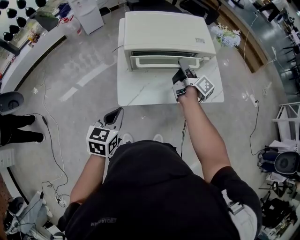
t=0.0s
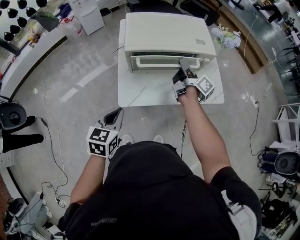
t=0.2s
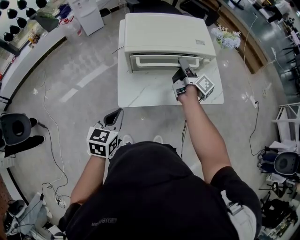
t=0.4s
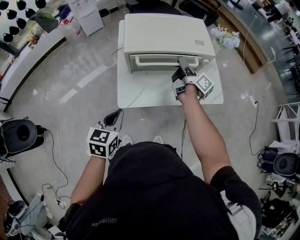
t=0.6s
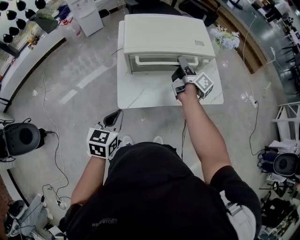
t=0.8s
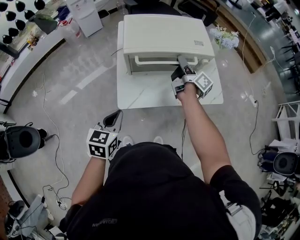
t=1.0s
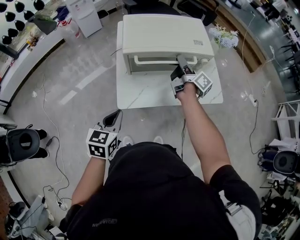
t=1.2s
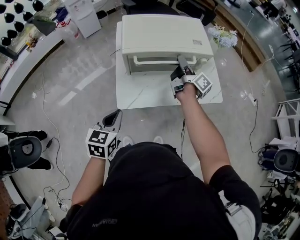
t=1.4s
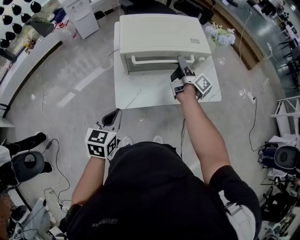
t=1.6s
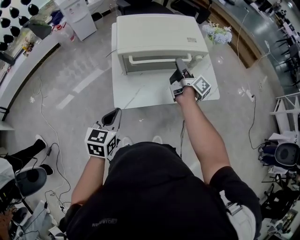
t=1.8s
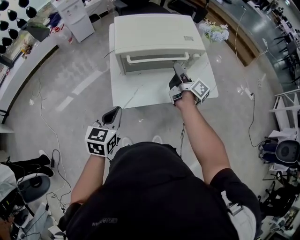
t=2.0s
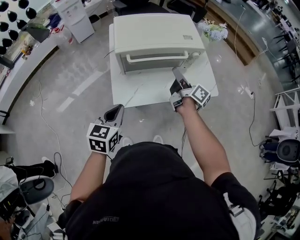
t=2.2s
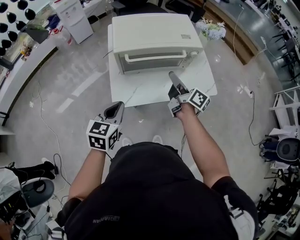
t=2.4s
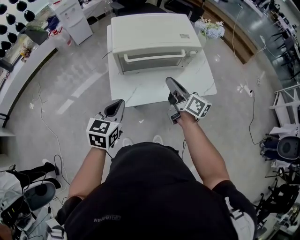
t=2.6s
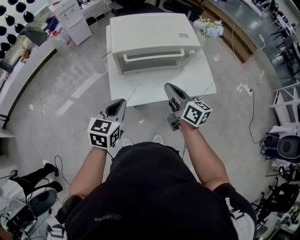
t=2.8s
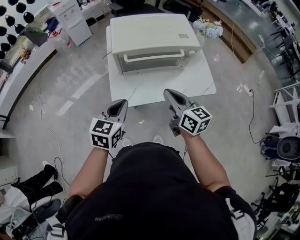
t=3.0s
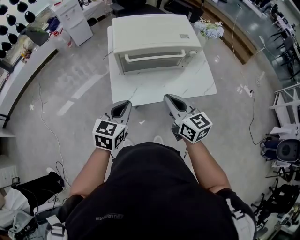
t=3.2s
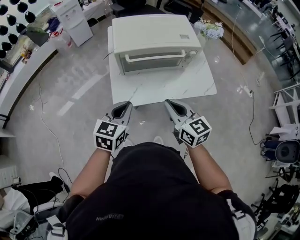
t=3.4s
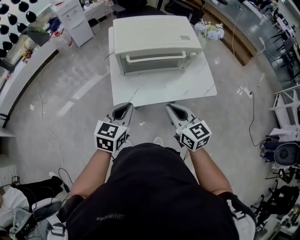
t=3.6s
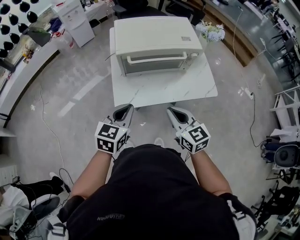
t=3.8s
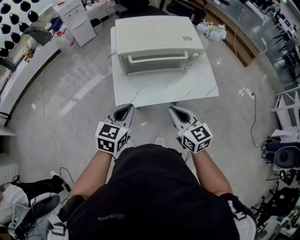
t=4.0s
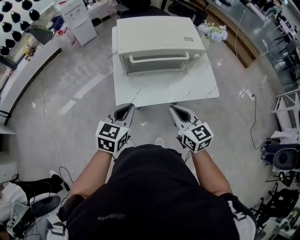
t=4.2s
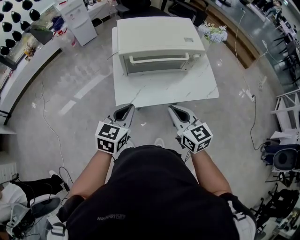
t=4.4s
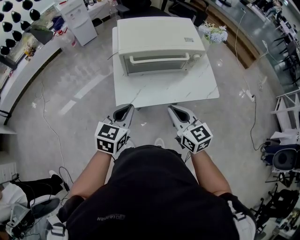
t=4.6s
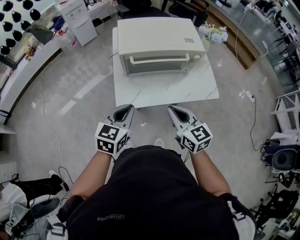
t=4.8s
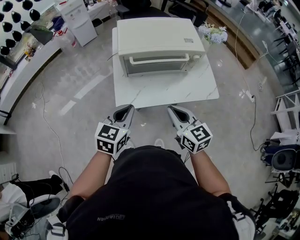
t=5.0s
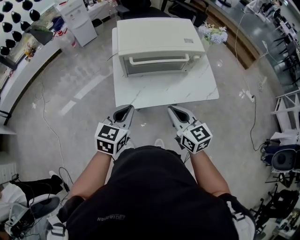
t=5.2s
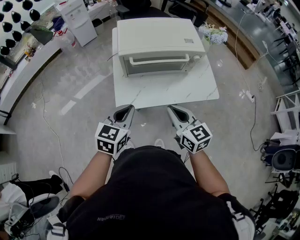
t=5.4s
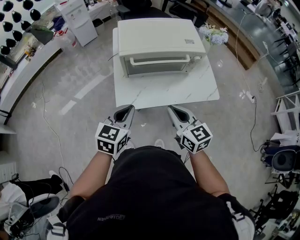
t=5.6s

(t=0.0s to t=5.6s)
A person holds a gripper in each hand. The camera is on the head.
t=0.0s - t=1.4s: The grippers make only small movements.
t=1.4s - t=2.8s: The right gripper travels backward by approximately 20 cm, rotates about 40 degrees, and closes up. The left gripper changes place by roughly 5 cm.
t=2.8s - t=4.2s: The right gripper travels backward by about 10 cm, and swivels approximately 30 degrees.
t=4.2s - t=5.6s: Both grippers stay put.

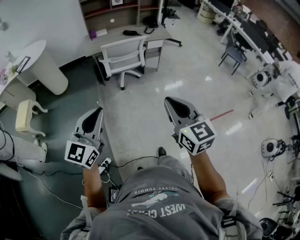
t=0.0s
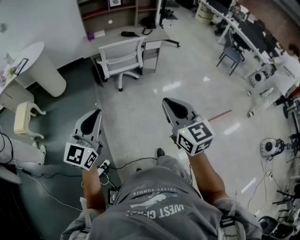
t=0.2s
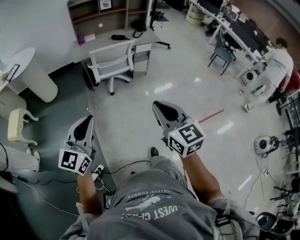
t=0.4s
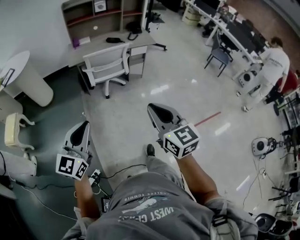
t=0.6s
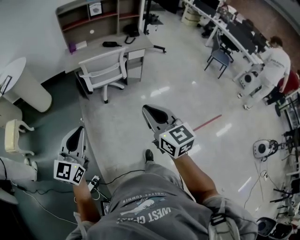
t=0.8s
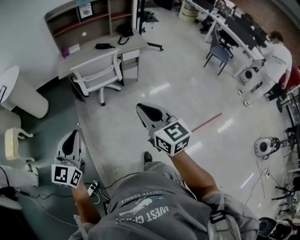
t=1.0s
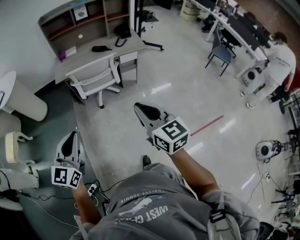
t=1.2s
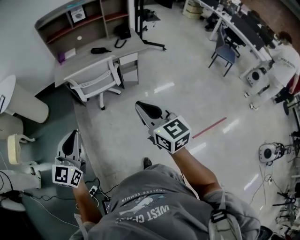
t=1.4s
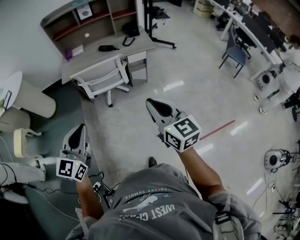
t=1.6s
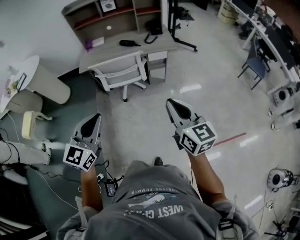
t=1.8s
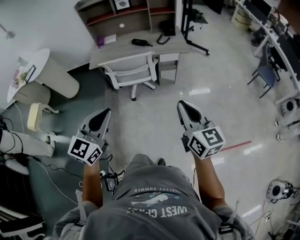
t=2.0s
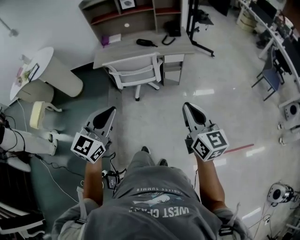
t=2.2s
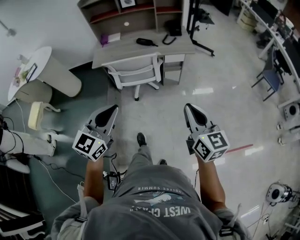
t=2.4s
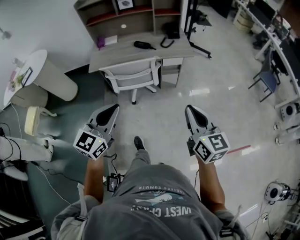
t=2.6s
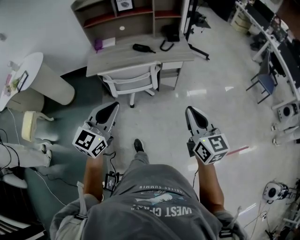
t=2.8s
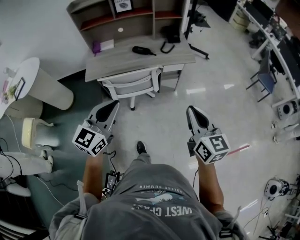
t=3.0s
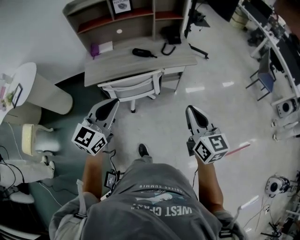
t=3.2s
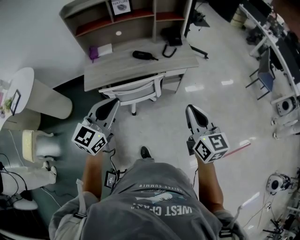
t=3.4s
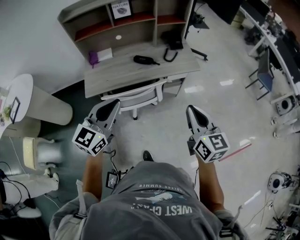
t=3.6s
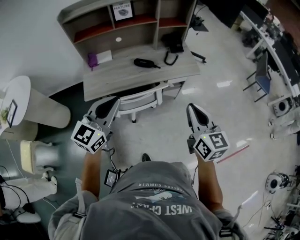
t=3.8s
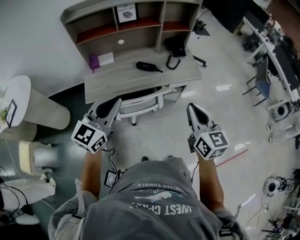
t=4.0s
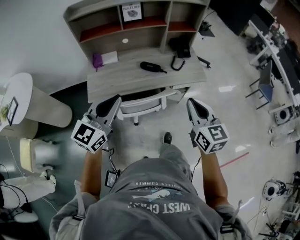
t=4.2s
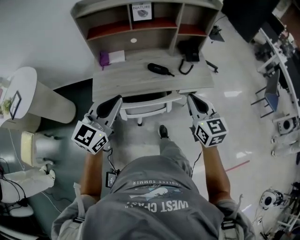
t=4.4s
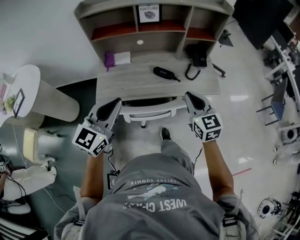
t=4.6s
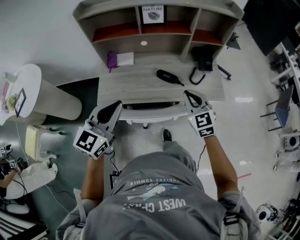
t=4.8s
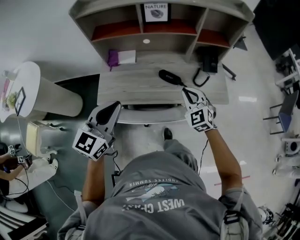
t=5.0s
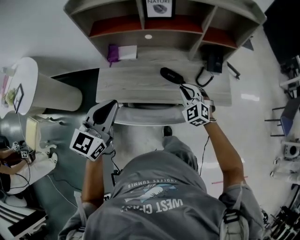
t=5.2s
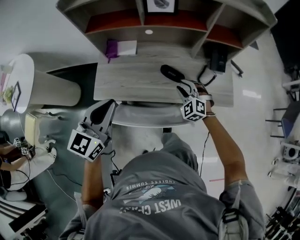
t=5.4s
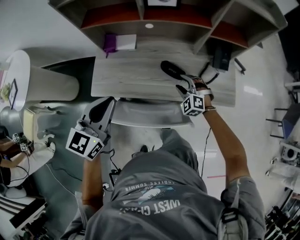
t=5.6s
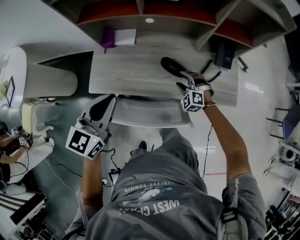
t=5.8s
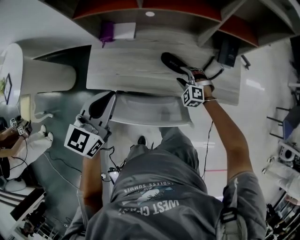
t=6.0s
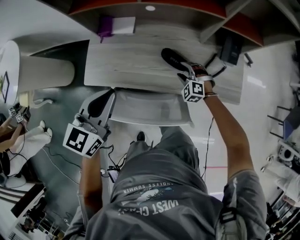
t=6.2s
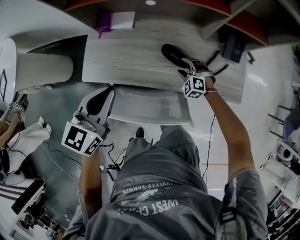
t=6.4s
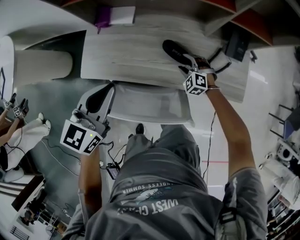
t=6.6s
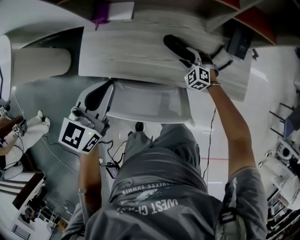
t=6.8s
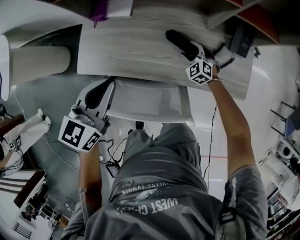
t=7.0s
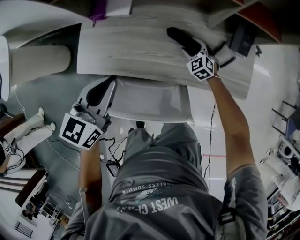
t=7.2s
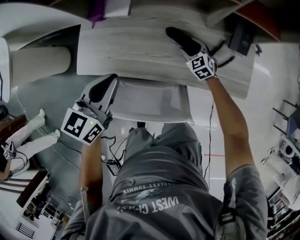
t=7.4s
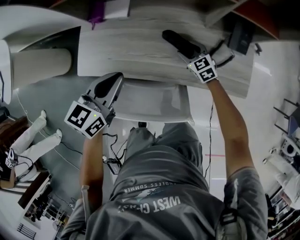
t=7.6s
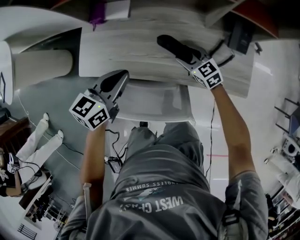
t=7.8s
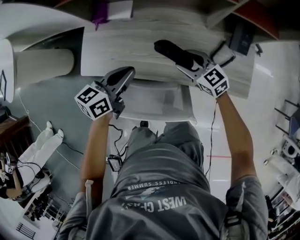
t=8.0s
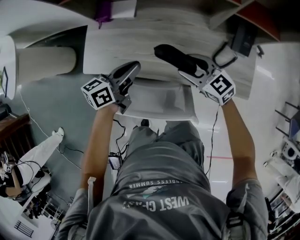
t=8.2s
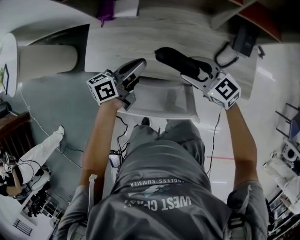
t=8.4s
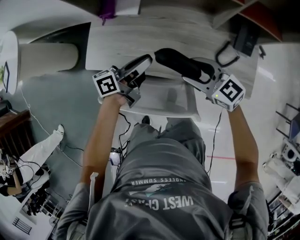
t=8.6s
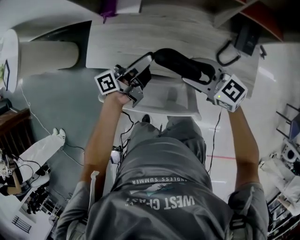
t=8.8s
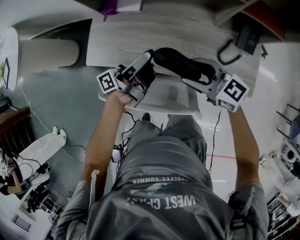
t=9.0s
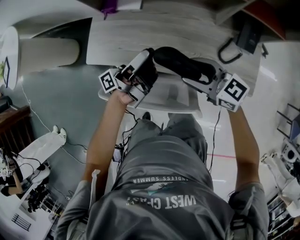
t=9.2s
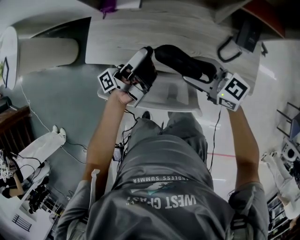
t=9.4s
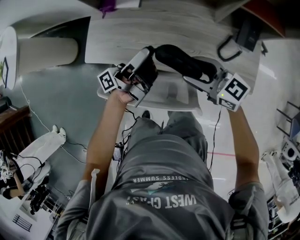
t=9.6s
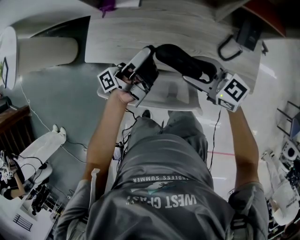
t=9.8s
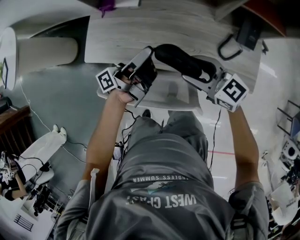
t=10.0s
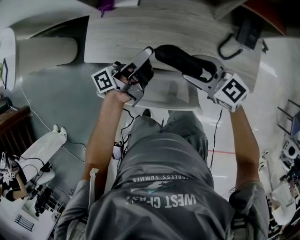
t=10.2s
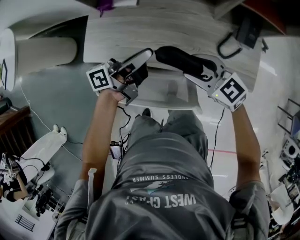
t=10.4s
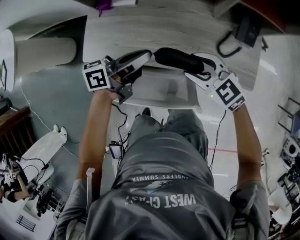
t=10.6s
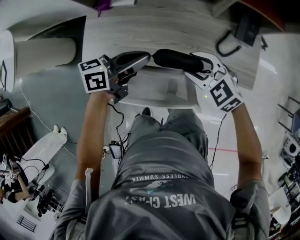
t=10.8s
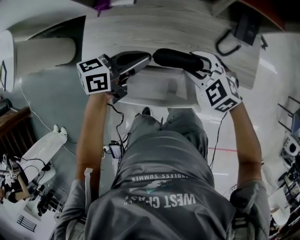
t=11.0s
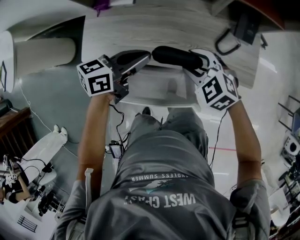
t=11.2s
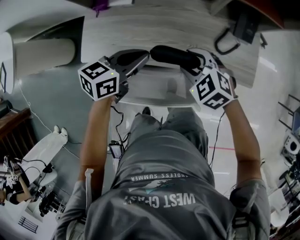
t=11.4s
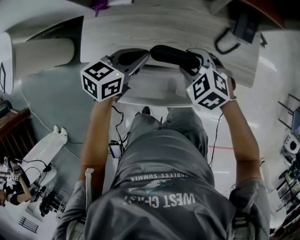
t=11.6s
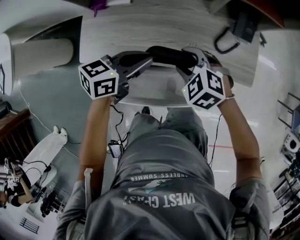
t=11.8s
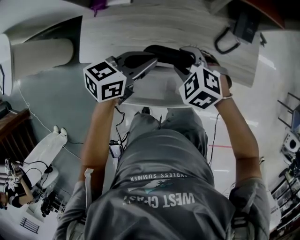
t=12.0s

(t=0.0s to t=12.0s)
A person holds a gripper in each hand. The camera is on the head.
t=0.0s - t=1.6s: Both grippers travel together forward and to the right, approximately 35 cm.
t=1.6s - t=3.0s: The two grippers go approximately 25 cm forward.
t=3.0s - t=4.4s: Both grippers move forward and to the left, roughly 30 cm.
t=4.4s - t=6.0s: The right gripper heads downward and forward, covering approximately 50 cm, rotates around the line of its fingers by some 60 degrees, counterclockwise from behind, and opens up. Meanwhile the left gripper travels forward and downward by approximately 25 cm, and turns by about 30 degrees.
t=6.0s - t=7.6s: The right gripper is displaced forward by some 10 cm, and rotates around the line of its fingers by some 40 degrees, clockwise from behind. The left gripper shifts roughly 15 cm downward and forward.
t=7.6s - t=9.0s: The left gripper tips its fingers upward by some 40 degrees, and opens; the right gripper moves upward and backward, roughly 25 cm, and turns by about 40 degrees.
t=9.0s - t=10.4s: The left gripper closes its fingers.
t=10.4s - t=12.0s: The right gripper tilts its fingers approximately 30 degrees downward; the left gripper points its fingers roughly 30 degrees further downward.

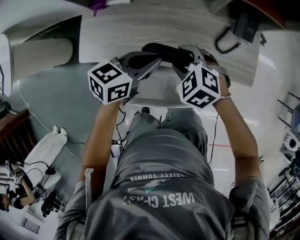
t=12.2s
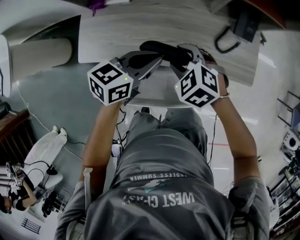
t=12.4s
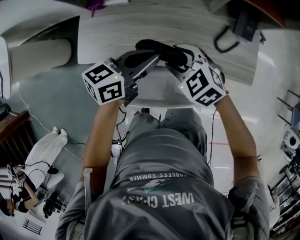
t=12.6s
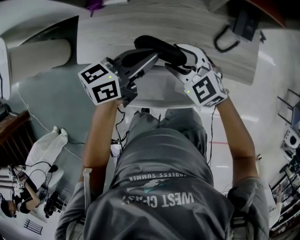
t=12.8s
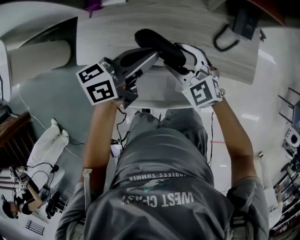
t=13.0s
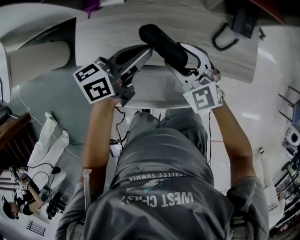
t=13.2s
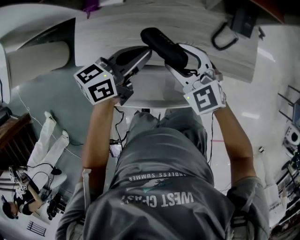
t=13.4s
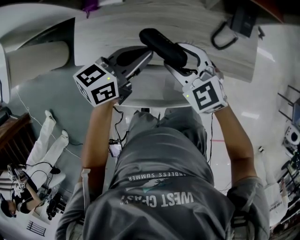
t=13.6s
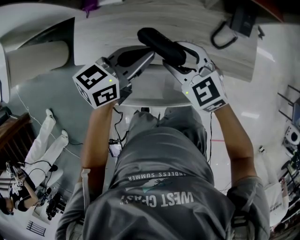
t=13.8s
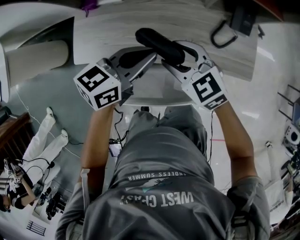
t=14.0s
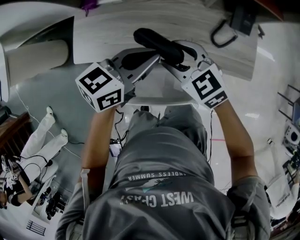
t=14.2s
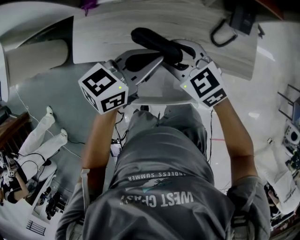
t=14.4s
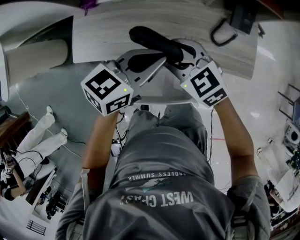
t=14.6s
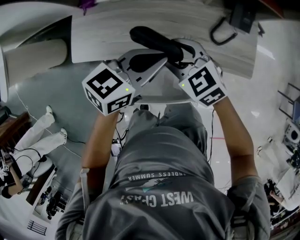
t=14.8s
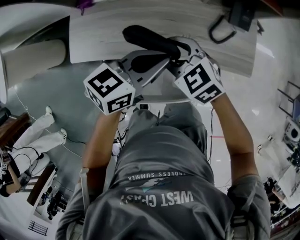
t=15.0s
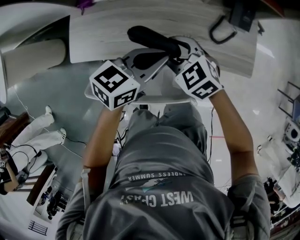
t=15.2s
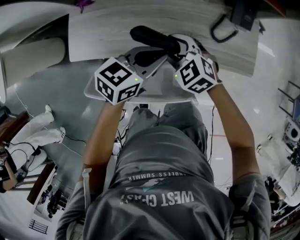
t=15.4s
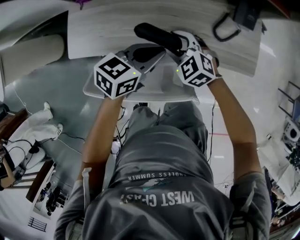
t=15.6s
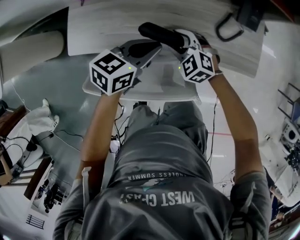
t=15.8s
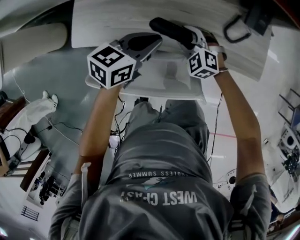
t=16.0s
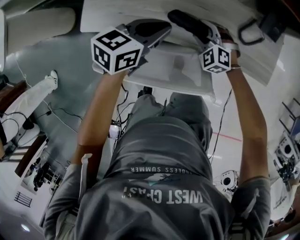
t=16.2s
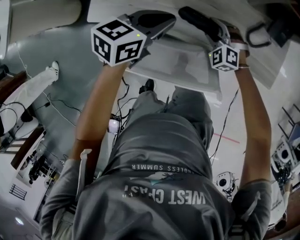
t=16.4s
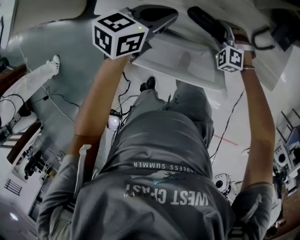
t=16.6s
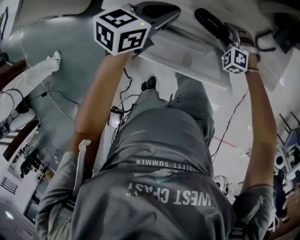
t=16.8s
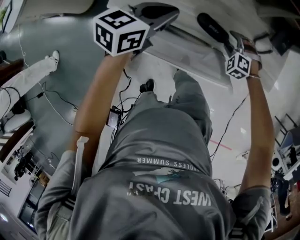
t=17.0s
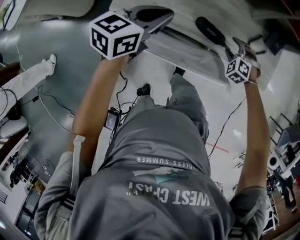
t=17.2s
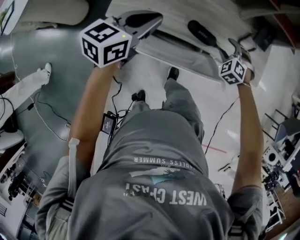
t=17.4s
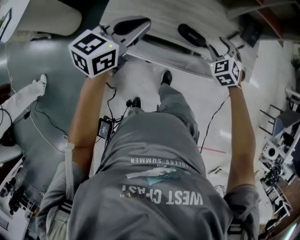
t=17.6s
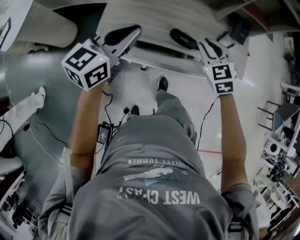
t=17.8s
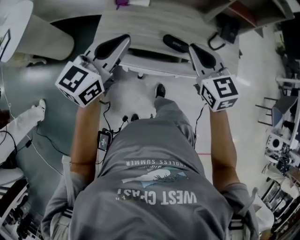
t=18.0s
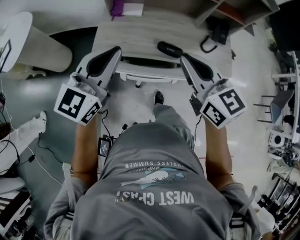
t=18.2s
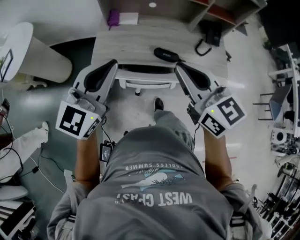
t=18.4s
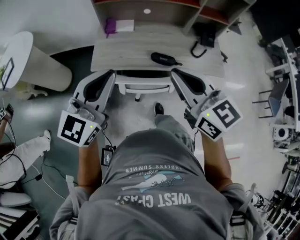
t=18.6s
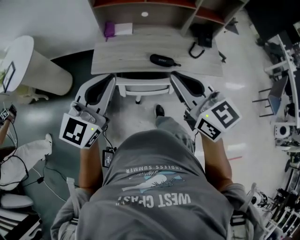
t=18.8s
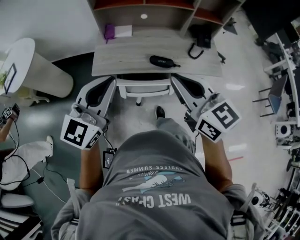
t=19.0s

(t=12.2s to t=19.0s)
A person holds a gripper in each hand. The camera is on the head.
t=12.2s - t=13.6s: The right gripper shifts some 5 cm upward, and rotates about 30 degrees.
t=13.6s - t=15.0s: The left gripper is displaced to the right by some 5 cm.
t=15.0s - t=16.2s: The left gripper moves downward and to the left, some 10 cm. The right gripper is displaced downward by some 20 cm, and turns by about 40 degrees.
t=16.2s - t=17.6s: The right gripper is displaced upward and backward by some 15 cm, and turns by roughly 20 degrees, while the left gripper shifts roughly 25 cm upward, to the left and backward, and turns by about 20 degrees.
t=17.6s - t=19.0s: The right gripper goes about 40 cm upward and backward, angles its fingers upward, by approximately 40 degrees, and closes its fingers. The left gripper travels backward and upward by approximately 20 cm, and swivels about 30 degrees.
